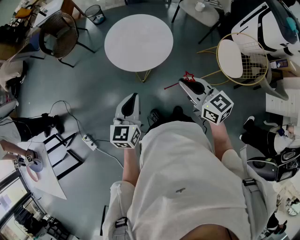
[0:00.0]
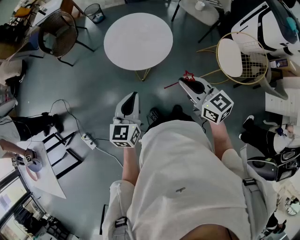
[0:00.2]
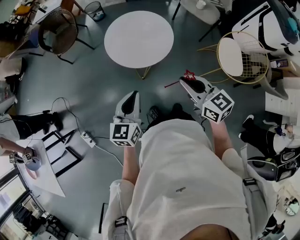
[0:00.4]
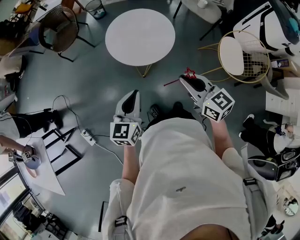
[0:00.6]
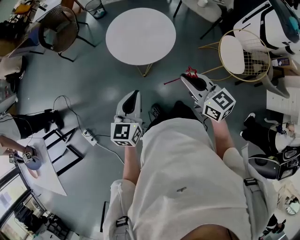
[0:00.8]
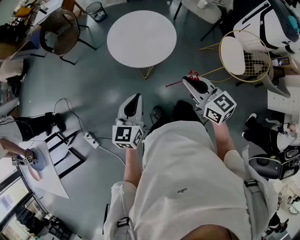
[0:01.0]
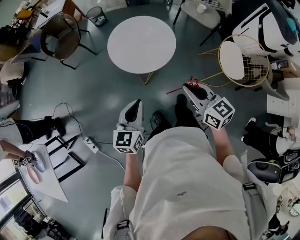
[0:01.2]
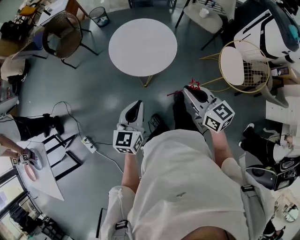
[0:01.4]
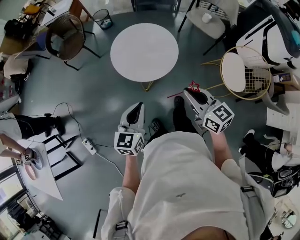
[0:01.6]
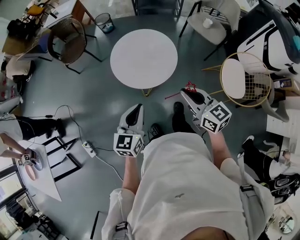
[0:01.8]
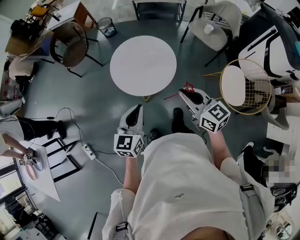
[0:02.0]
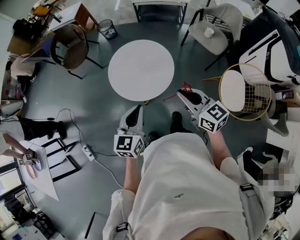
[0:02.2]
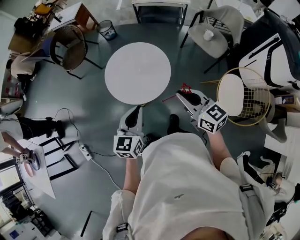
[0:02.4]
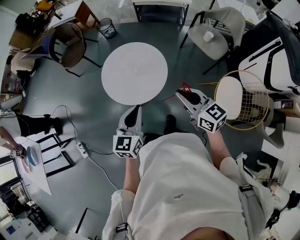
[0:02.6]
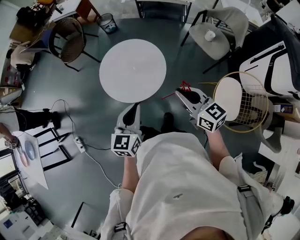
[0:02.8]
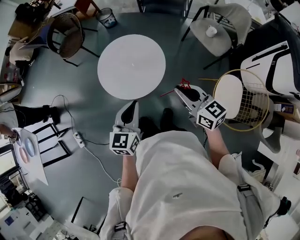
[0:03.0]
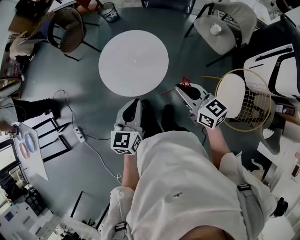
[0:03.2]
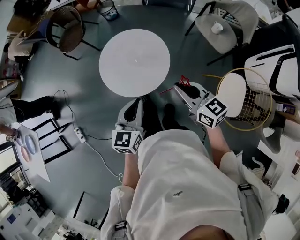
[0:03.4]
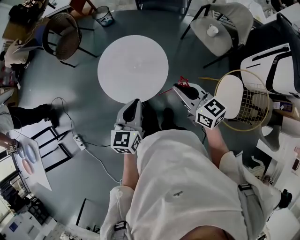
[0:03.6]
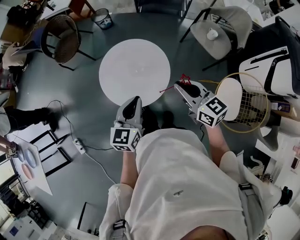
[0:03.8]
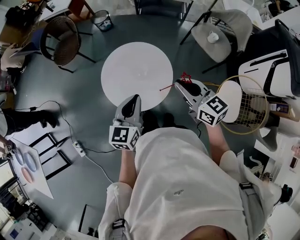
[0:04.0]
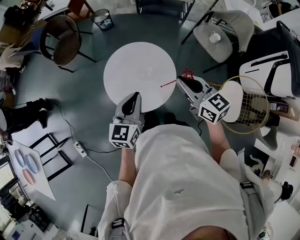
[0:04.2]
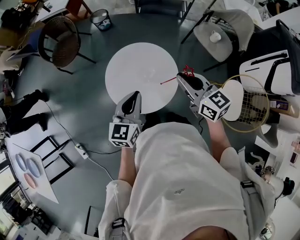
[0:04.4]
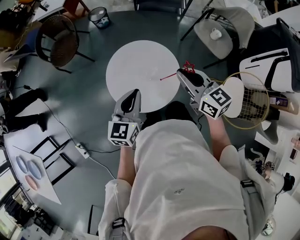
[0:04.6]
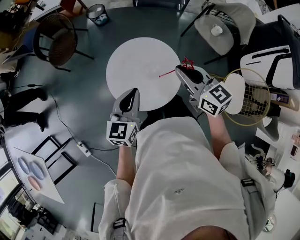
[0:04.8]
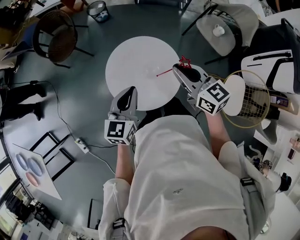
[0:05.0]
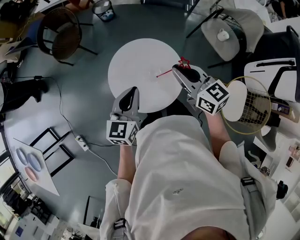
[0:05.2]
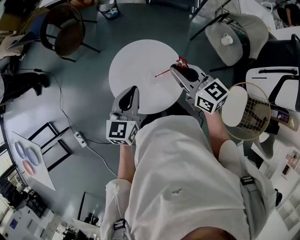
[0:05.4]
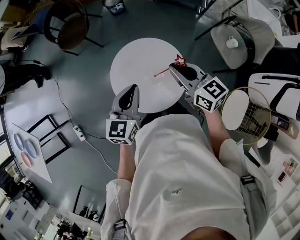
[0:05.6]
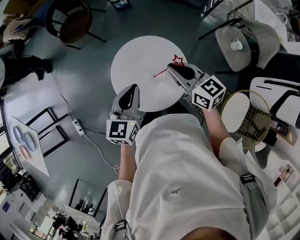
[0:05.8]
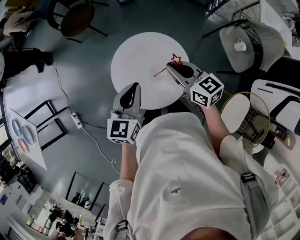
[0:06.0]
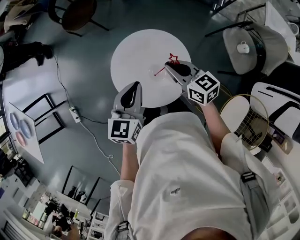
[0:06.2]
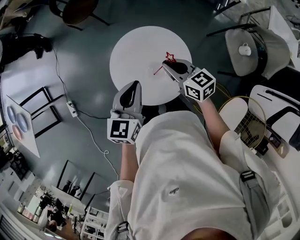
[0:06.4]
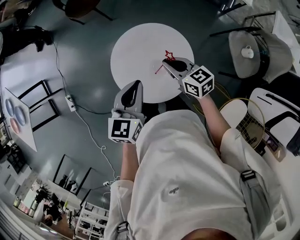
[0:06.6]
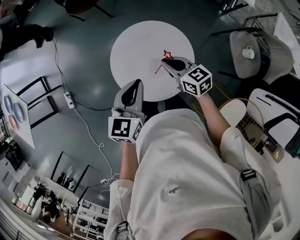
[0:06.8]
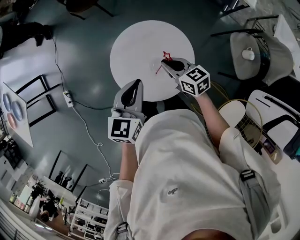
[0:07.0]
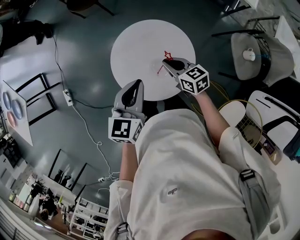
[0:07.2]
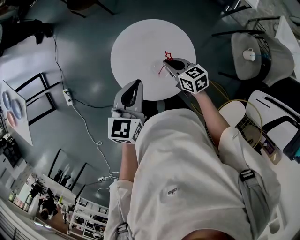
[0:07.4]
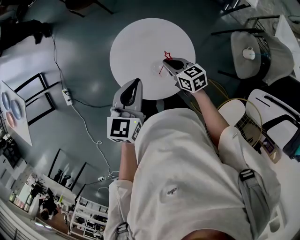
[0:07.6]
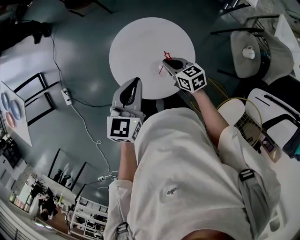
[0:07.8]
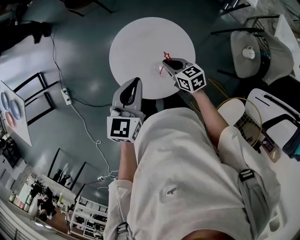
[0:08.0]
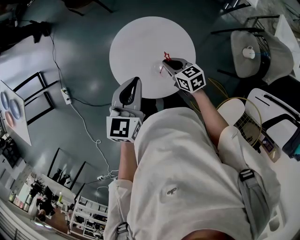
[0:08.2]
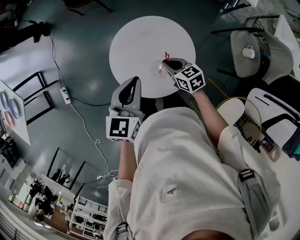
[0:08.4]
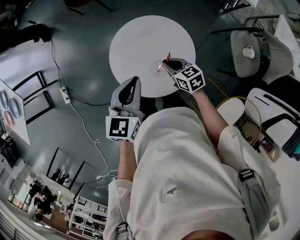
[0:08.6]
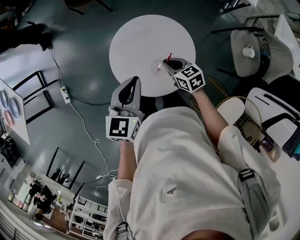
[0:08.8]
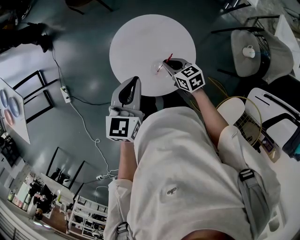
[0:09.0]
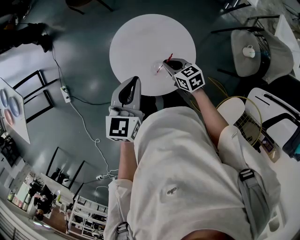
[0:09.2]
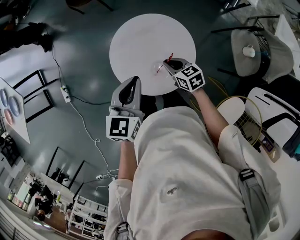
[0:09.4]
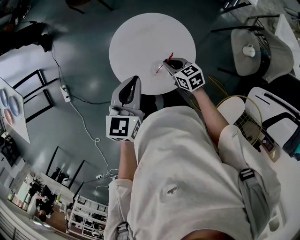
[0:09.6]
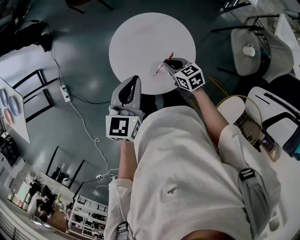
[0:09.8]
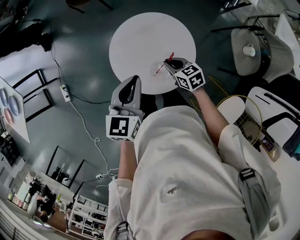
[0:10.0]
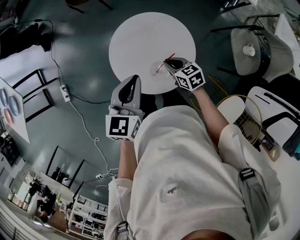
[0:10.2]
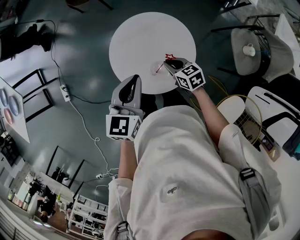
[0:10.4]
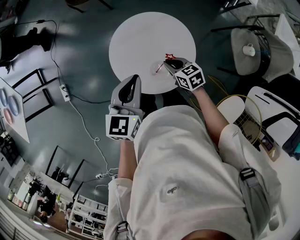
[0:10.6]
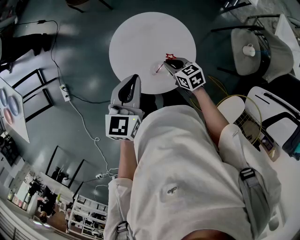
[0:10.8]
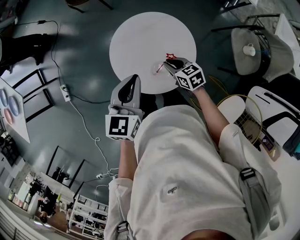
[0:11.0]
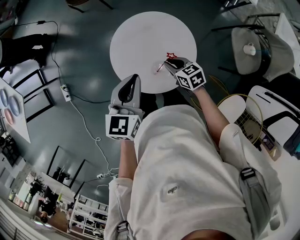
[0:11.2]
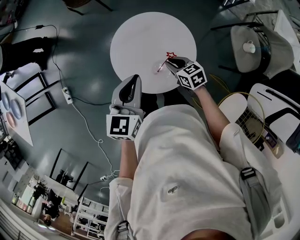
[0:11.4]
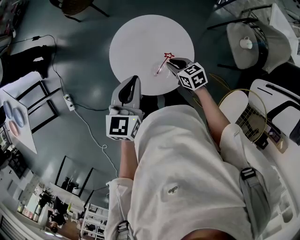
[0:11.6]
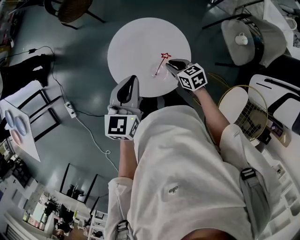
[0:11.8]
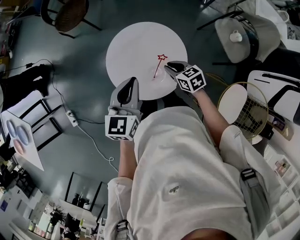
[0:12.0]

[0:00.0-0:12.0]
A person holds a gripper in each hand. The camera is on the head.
0:00.0 to 0:01.6: The grippers move only a little.
0:01.6 to 0:03.0: The grippers both shift to the right and forward by roughly 20 cm.
0:03.0 to 0:04.4: The grippers both shift forward and to the left by some 20 cm.
0:04.4 to 0:06.0: The right gripper is displaced forward and downward by approximately 15 cm, and rotates about 20 degrees; the left gripper travels forward by approximately 10 cm.
0:06.0 to 0:07.6: The right gripper moves downward, roughly 15 cm, and swivels about 20 degrees.
0:07.6 to 0:10.4: The grippers stay close to where they were, moving slightly.
0:10.4 to 0:12.0: The right gripper changes place by approximately 5 cm.

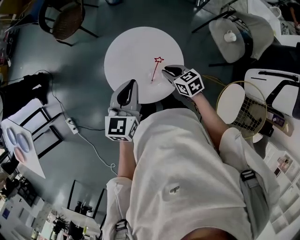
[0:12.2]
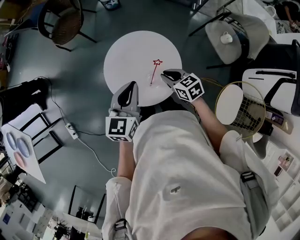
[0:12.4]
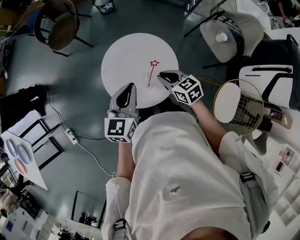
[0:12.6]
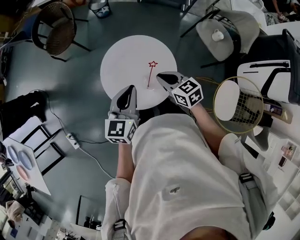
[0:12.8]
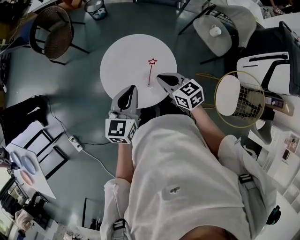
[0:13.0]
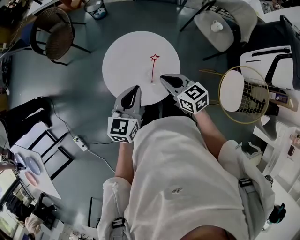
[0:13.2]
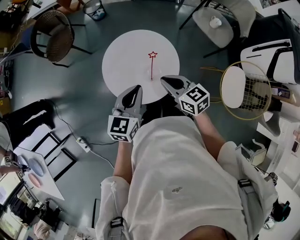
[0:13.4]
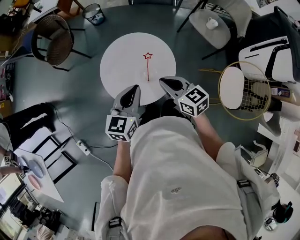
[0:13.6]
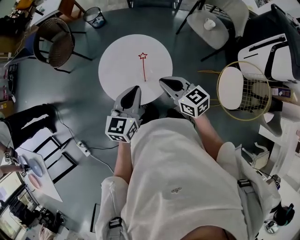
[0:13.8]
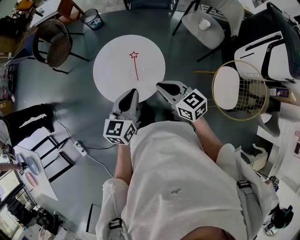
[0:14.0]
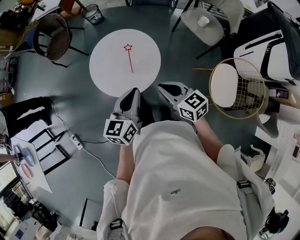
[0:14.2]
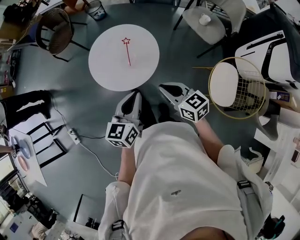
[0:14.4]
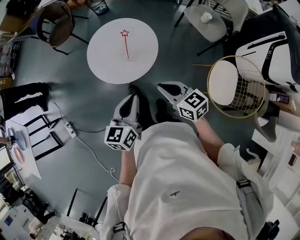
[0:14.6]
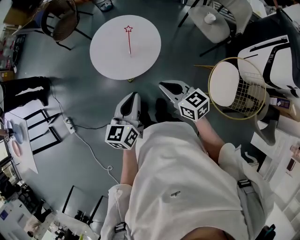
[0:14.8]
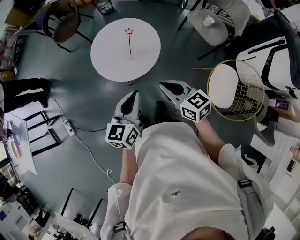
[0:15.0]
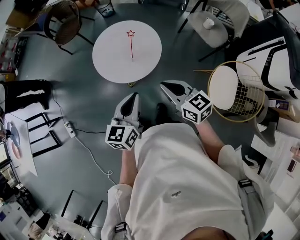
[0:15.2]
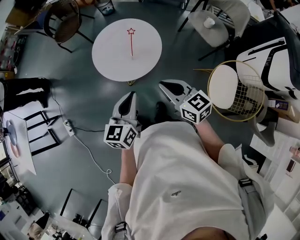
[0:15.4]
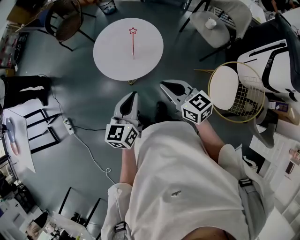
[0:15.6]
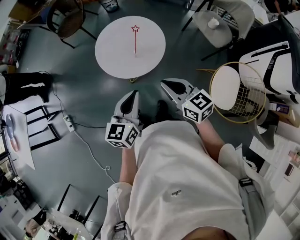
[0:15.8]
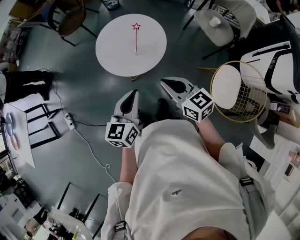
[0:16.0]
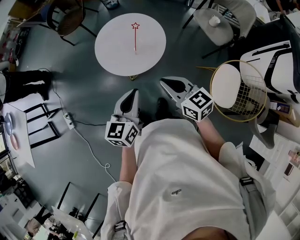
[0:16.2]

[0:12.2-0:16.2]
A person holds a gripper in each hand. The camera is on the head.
0:12.2 to 0:13.6: The left gripper travels backward by approximately 5 cm; the right gripper moves upward and backward, some 15 cm, and turns by some 20 degrees.
0:13.6 to 0:14.8: The right gripper is displaced backward and to the right by roughly 20 cm. Meanwhile the left gripper moves backward, roughly 25 cm, and changes its angle by some 20 degrees.
0:14.8 to 0:16.2: The grippers move only a little.

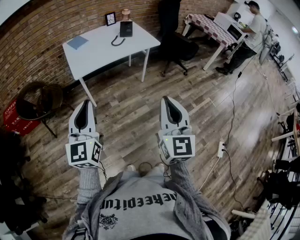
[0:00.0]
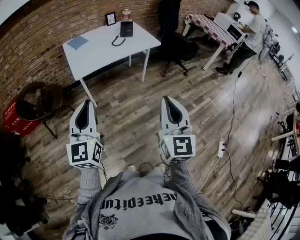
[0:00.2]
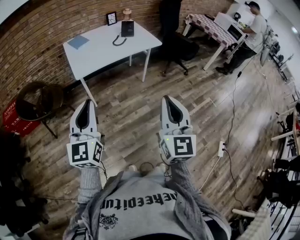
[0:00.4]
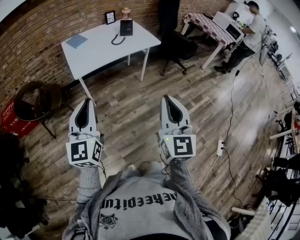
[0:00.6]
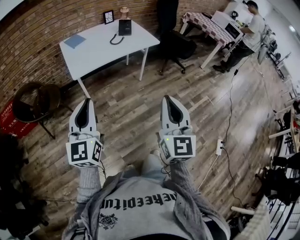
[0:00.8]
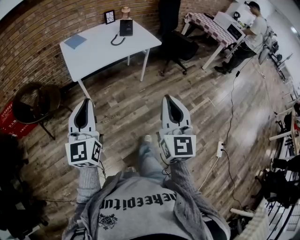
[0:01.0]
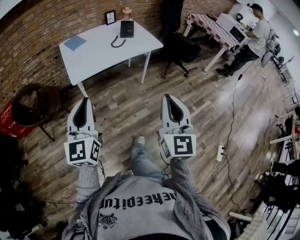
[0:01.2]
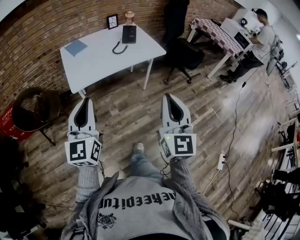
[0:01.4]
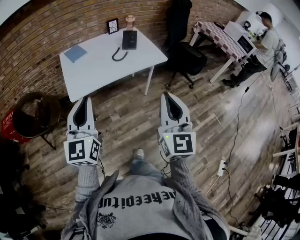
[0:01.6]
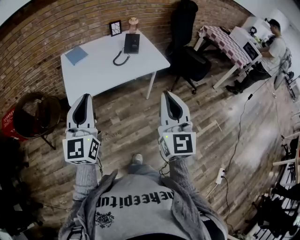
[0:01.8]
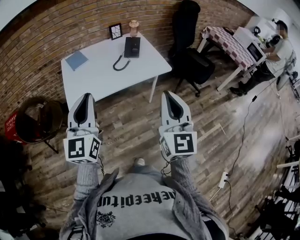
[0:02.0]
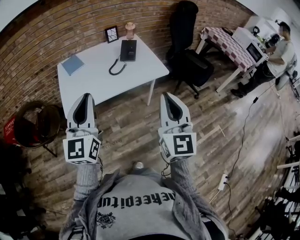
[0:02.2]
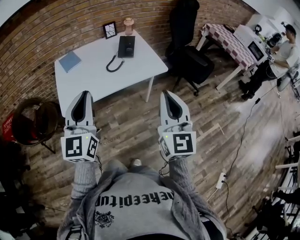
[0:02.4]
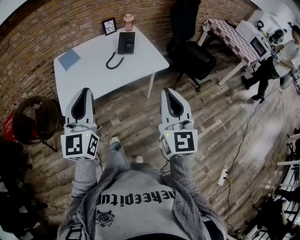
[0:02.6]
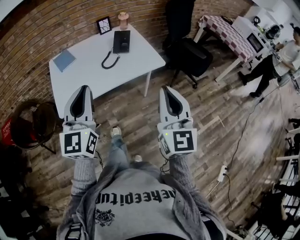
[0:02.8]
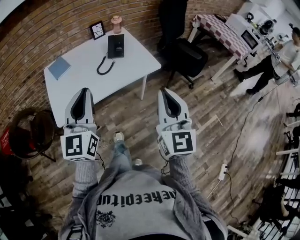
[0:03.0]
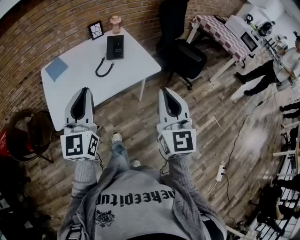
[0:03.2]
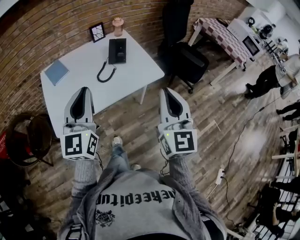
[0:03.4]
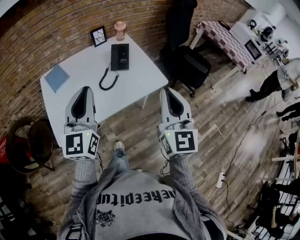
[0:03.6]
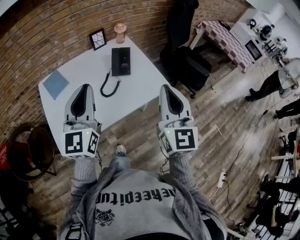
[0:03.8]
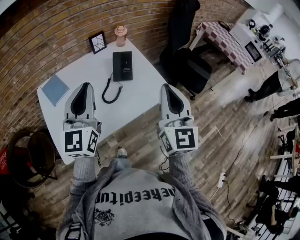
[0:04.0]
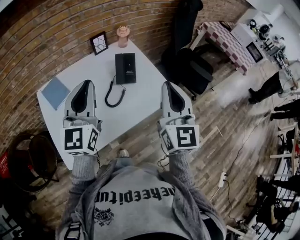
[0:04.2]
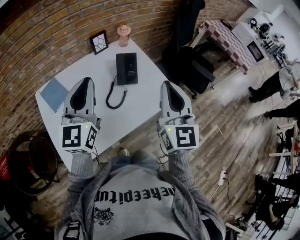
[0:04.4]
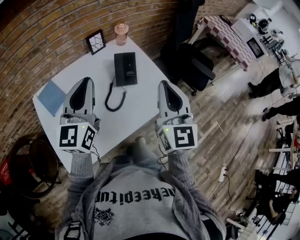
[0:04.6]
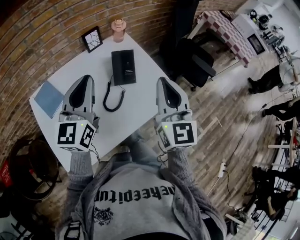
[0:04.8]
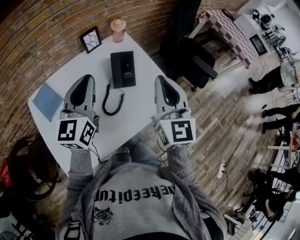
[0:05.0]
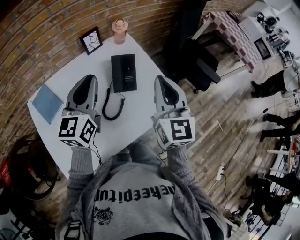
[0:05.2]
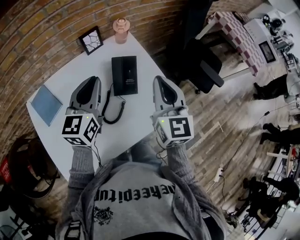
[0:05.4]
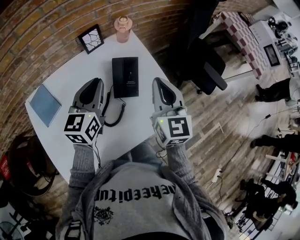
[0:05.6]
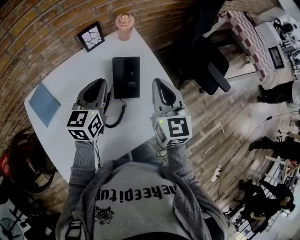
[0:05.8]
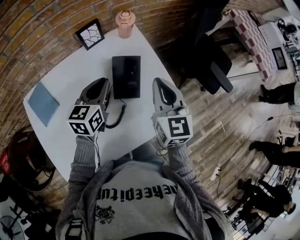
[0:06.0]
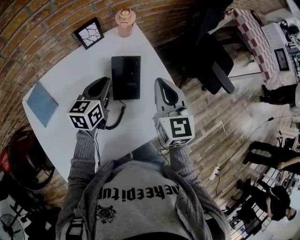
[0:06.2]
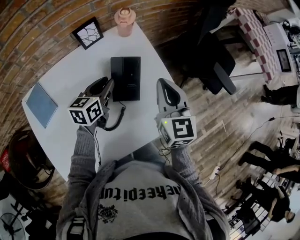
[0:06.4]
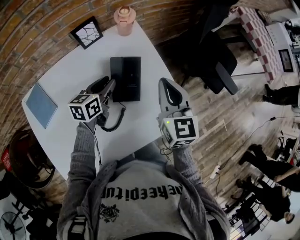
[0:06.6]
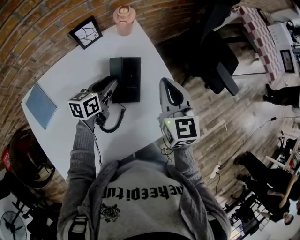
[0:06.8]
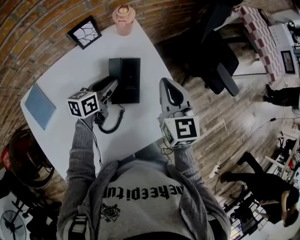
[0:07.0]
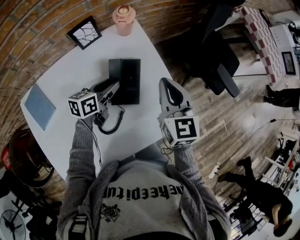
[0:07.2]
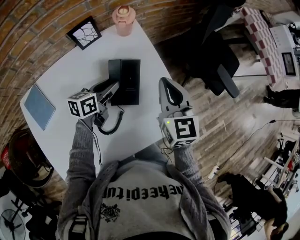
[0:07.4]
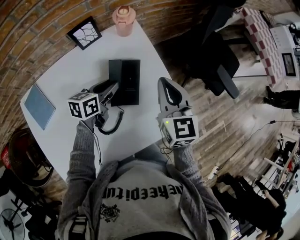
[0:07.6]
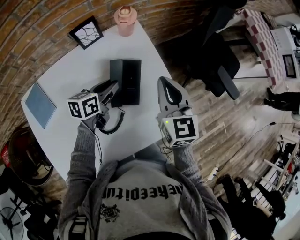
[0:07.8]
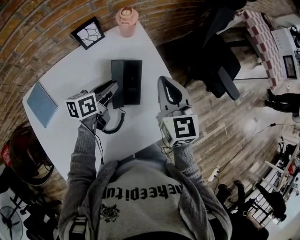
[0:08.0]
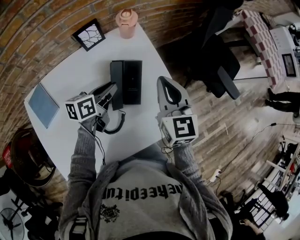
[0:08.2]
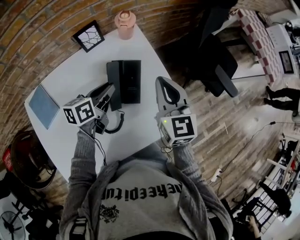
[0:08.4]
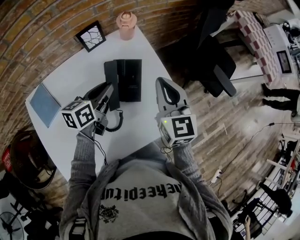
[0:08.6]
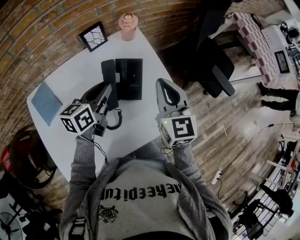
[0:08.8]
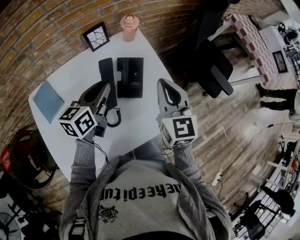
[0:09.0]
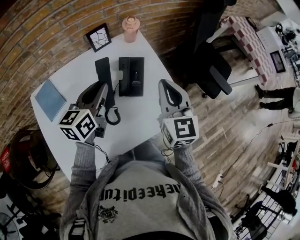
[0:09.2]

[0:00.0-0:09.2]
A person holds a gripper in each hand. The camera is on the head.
0:00.0 to 0:01.6: The two grippers go some 20 cm forward.
0:01.6 to 0:03.0: The grippers both shift forward and to the right by some 20 cm.
0:03.0 to 0:04.6: The grippers both shift forward by some 30 cm.
0:04.6 to 0:06.2: The right gripper heads forward and downward, covering roughly 25 cm, and changes its angle by some 20 degrees. The left gripper shifts about 30 cm downward and forward, and angles its fingers downward, by roughly 30 degrees.
0:06.2 to 0:07.6: The right gripper shifts by approximately 5 cm; the left gripper goes approximately 5 cm downward, and opens.
0:07.6 to 0:09.2: The right gripper travels backward and upward by approximately 10 cm; the left gripper shifts approximately 20 cm upward and backward, and swivels approximately 30 degrees.
